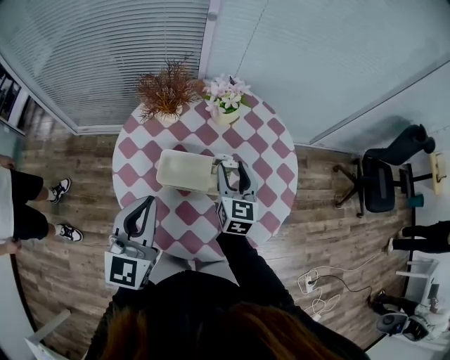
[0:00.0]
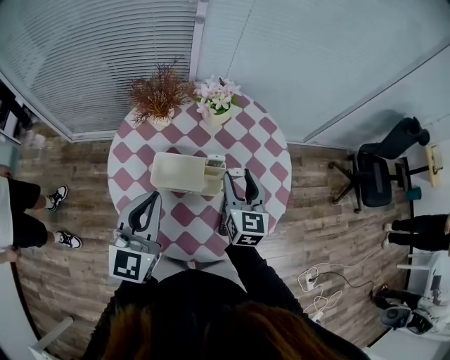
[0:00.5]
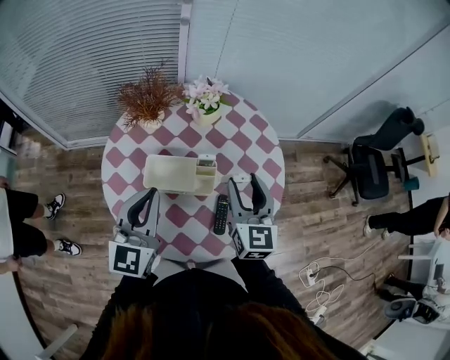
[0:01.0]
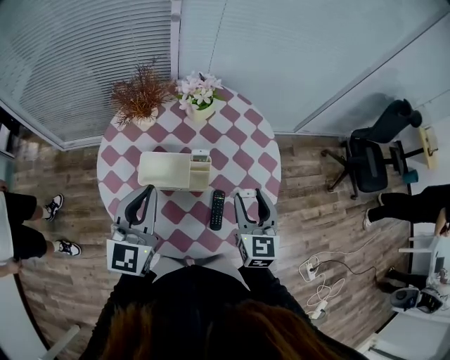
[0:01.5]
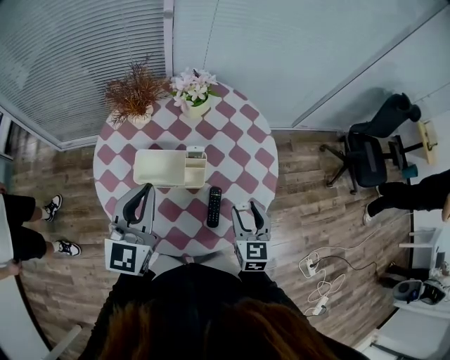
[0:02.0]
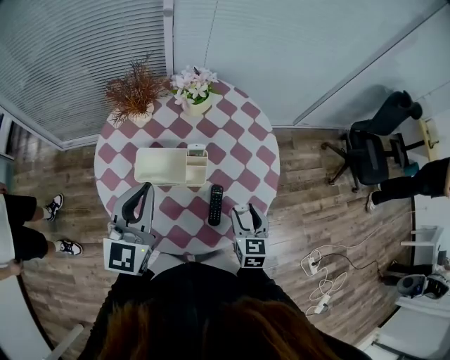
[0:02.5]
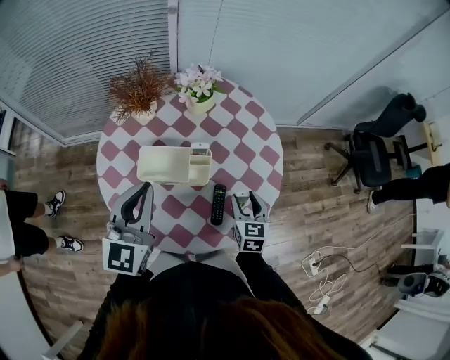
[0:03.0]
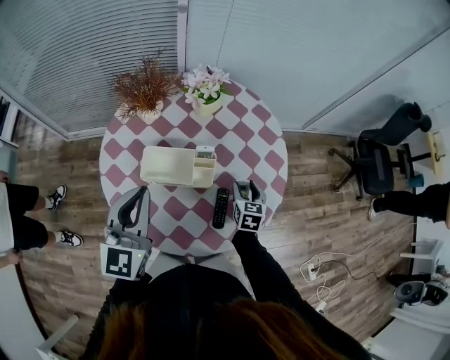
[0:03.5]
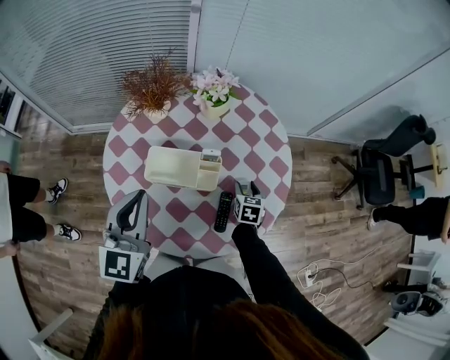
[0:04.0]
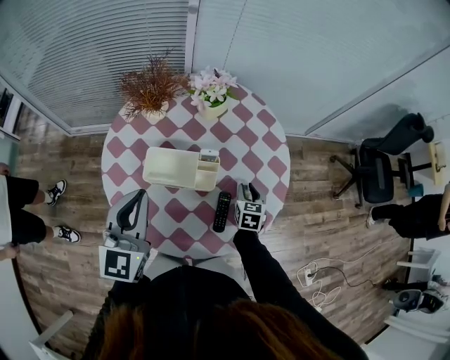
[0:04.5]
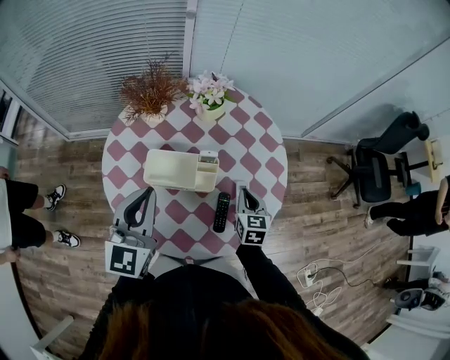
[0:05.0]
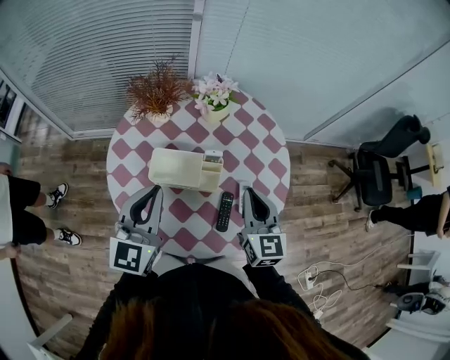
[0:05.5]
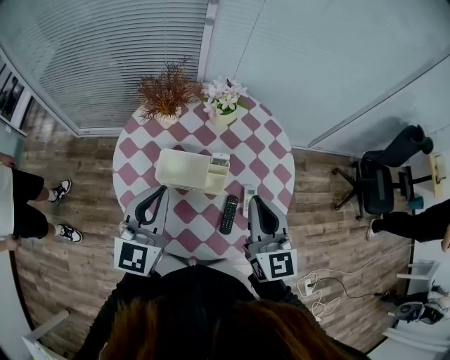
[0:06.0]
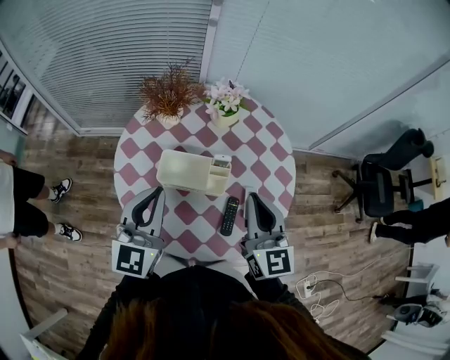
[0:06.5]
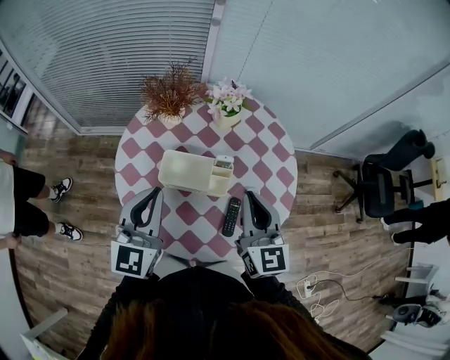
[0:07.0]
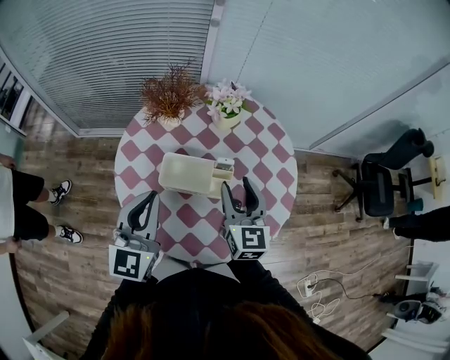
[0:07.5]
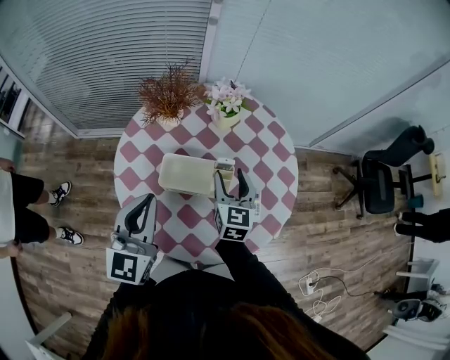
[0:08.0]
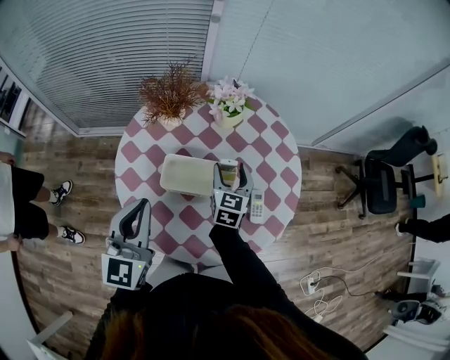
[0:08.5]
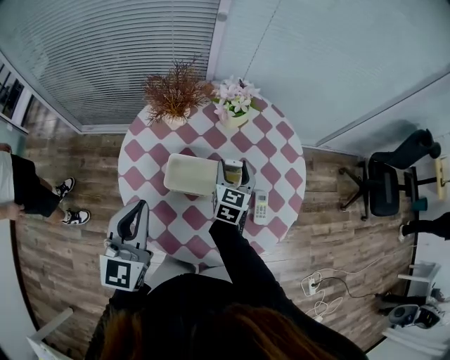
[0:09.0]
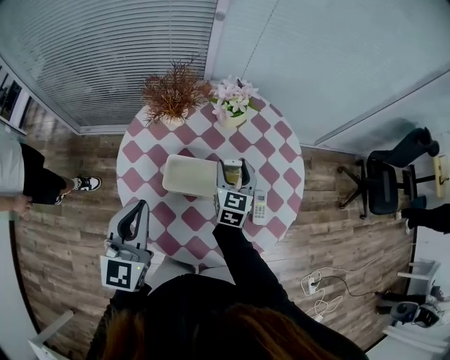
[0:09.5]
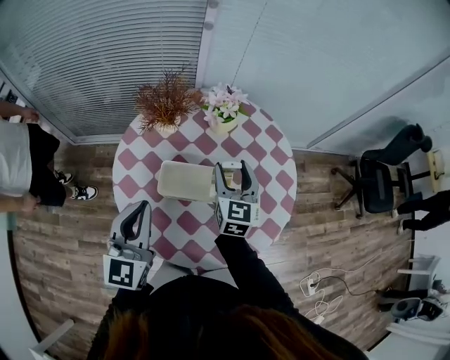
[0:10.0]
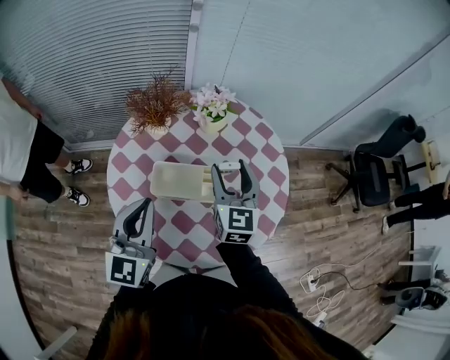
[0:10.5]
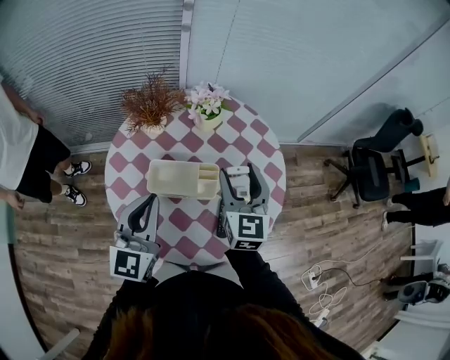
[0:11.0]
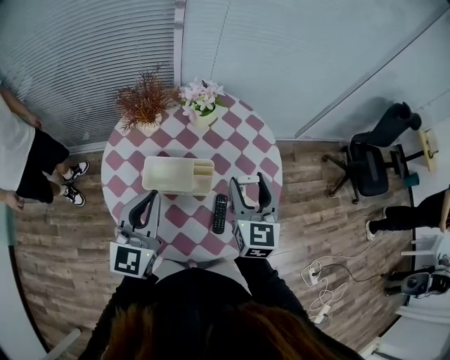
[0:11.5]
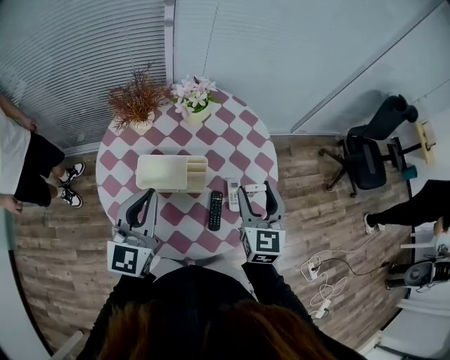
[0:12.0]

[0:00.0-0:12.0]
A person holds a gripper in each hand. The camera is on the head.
0:00.0 to 0:02.0: The right gripper moves to the right and backward, roughly 20 cm; the left gripper is displaced to the right by about 5 cm.
0:02.0 to 0:04.0: The right gripper heads downward and forward, covering some 20 cm, and rotates roughly 20 degrees.
0:04.0 to 0:06.0: The right gripper goes some 30 cm upward, points its fingers about 40 degrees further upward, and closes up.
0:06.0 to 0:08.0: The right gripper travels downward, forward and to the left by some 20 cm, and opens.
0:10.0 to 0:12.0: The left gripper travels to the right by roughly 10 cm, while the right gripper goes roughly 20 cm to the right and backward.

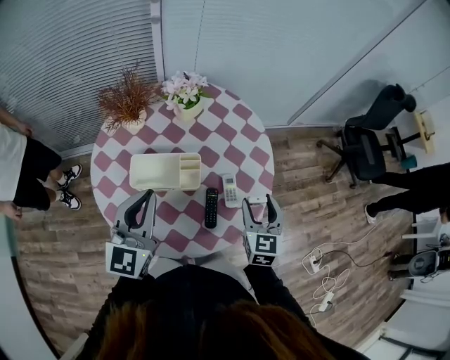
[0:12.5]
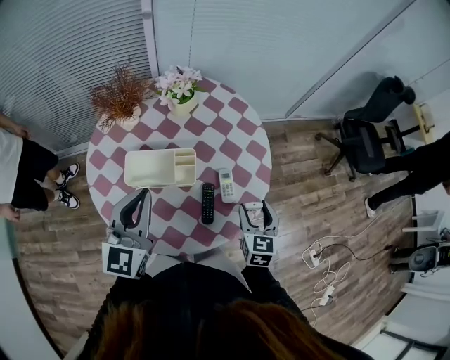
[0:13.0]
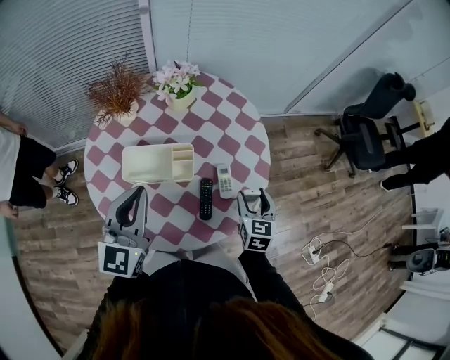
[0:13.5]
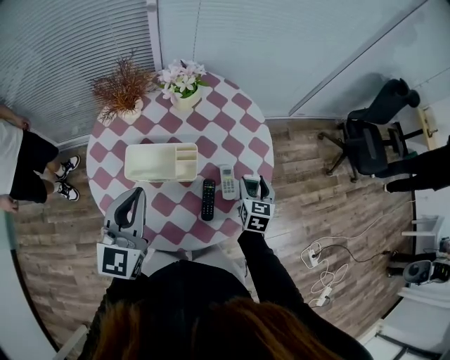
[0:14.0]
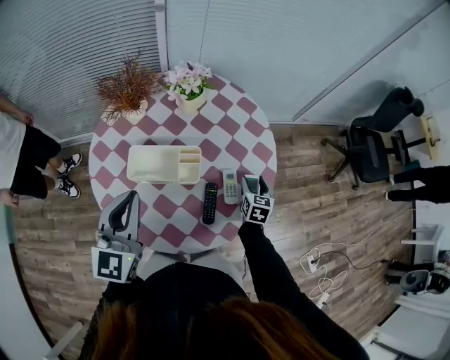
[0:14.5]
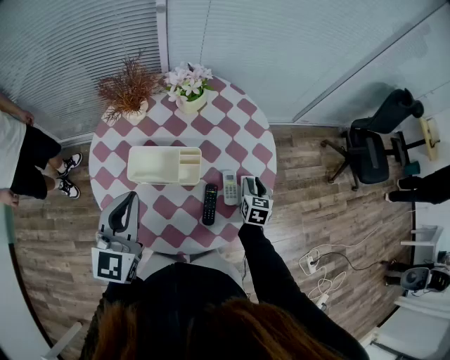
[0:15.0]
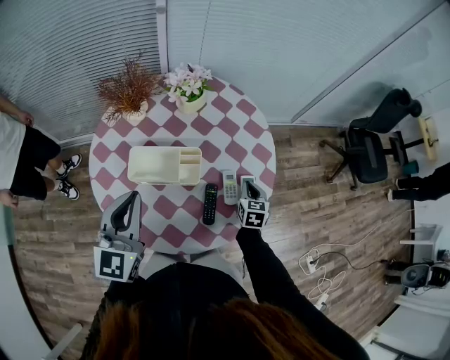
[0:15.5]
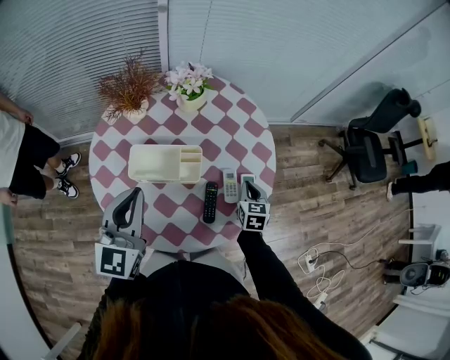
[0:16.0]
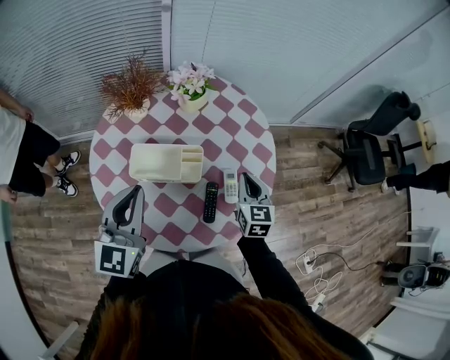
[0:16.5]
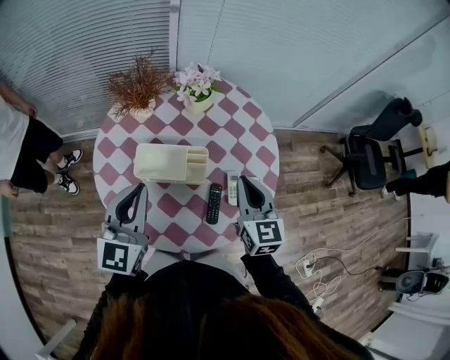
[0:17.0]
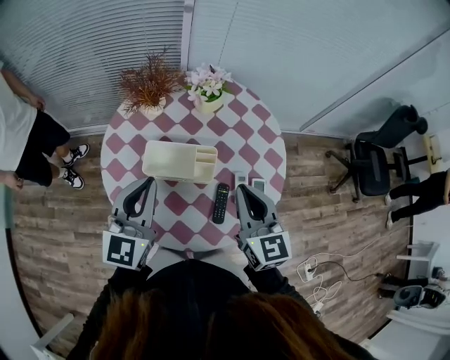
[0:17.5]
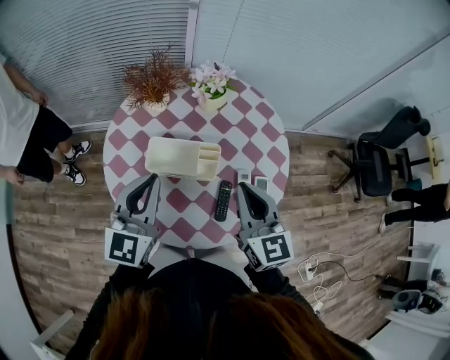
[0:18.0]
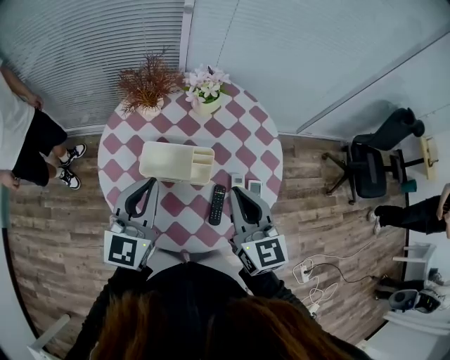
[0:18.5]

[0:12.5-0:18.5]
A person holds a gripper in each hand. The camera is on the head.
0:12.5 to 0:14.5: The right gripper goes some 20 cm downward and forward.
0:14.5 to 0:16.5: The right gripper travels upward and to the left by approximately 15 cm, and closes its fingers.
0:16.5 to 0:18.5: The right gripper shifts about 20 cm upward and to the left, and changes its angle by about 20 degrees.

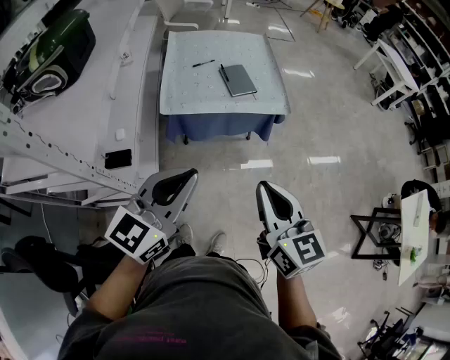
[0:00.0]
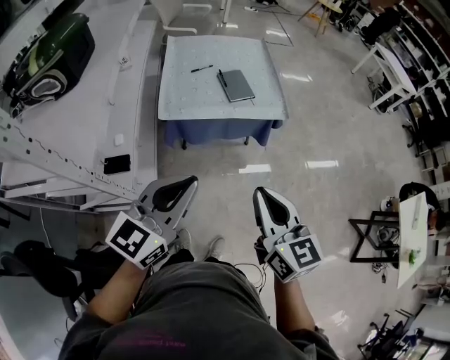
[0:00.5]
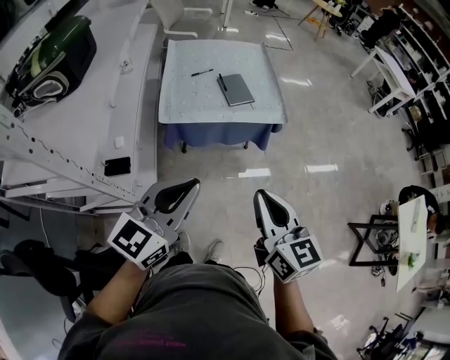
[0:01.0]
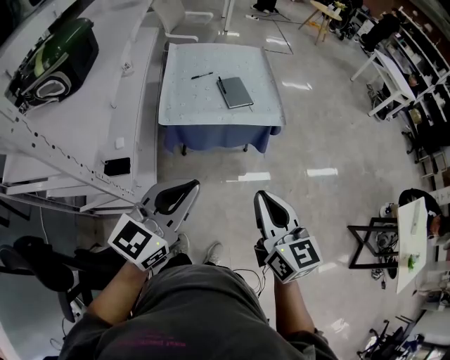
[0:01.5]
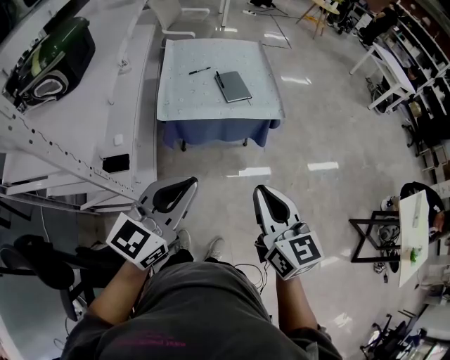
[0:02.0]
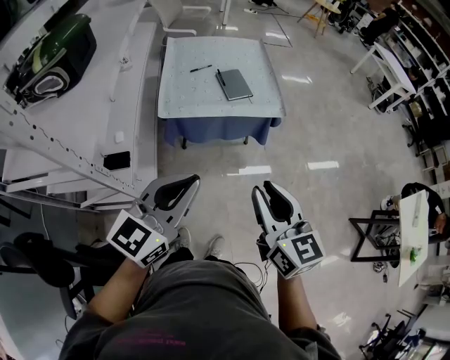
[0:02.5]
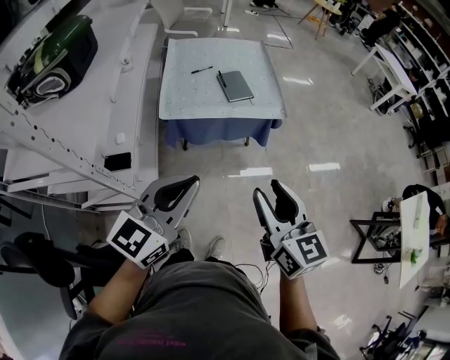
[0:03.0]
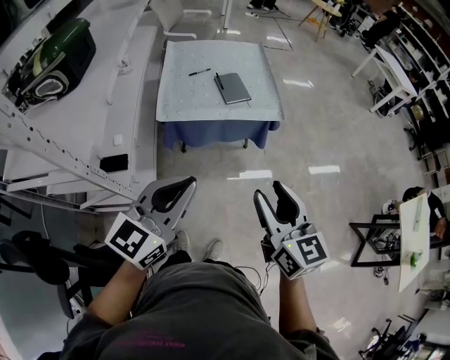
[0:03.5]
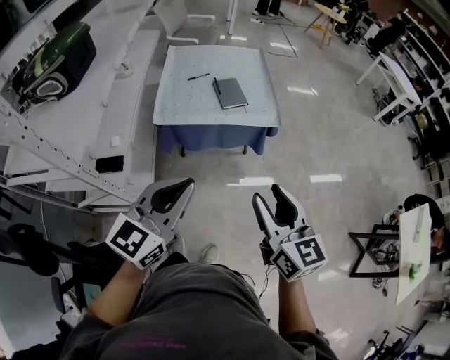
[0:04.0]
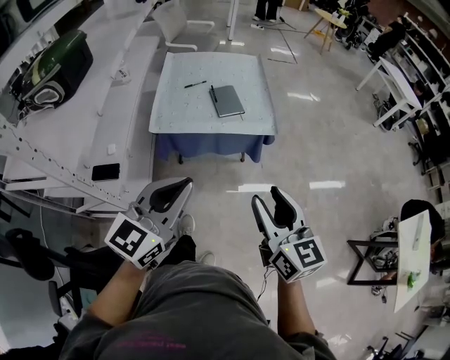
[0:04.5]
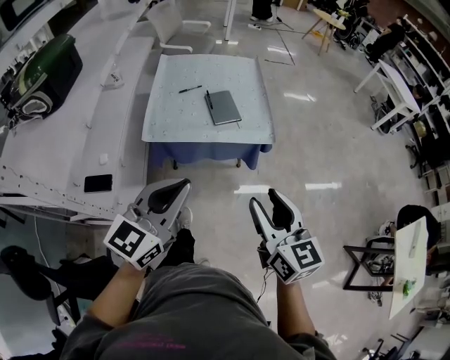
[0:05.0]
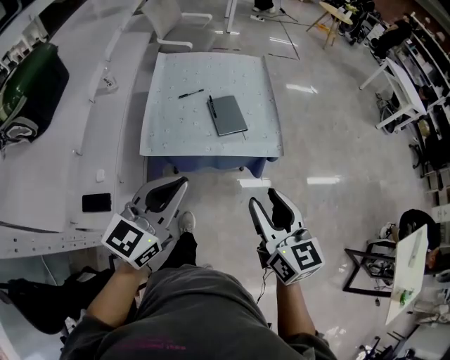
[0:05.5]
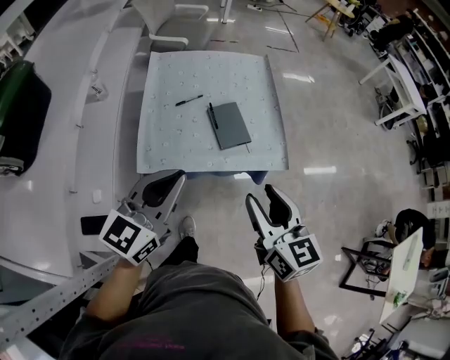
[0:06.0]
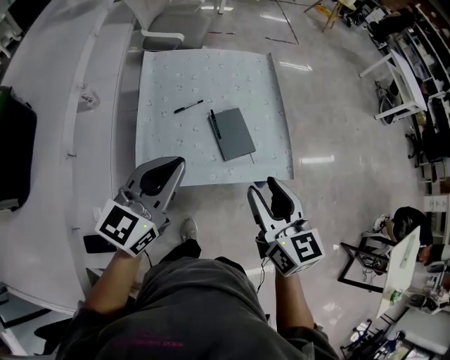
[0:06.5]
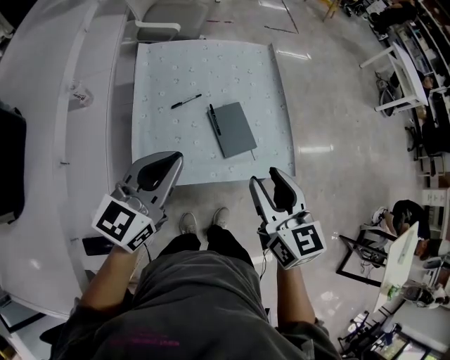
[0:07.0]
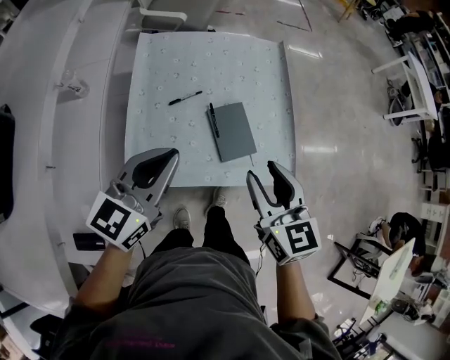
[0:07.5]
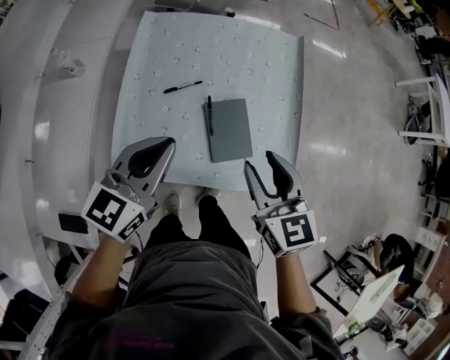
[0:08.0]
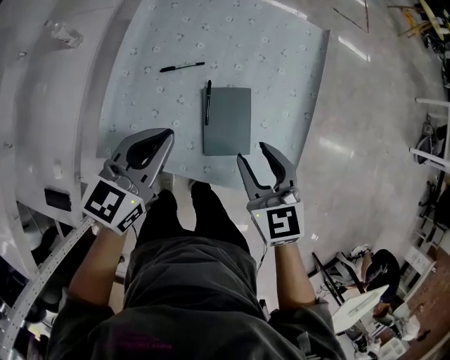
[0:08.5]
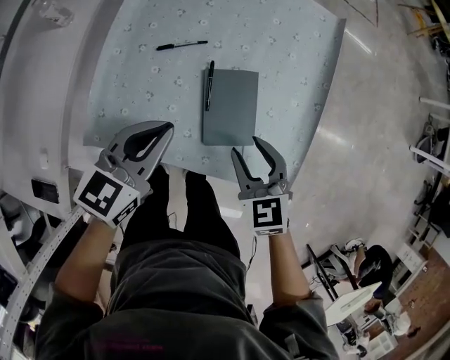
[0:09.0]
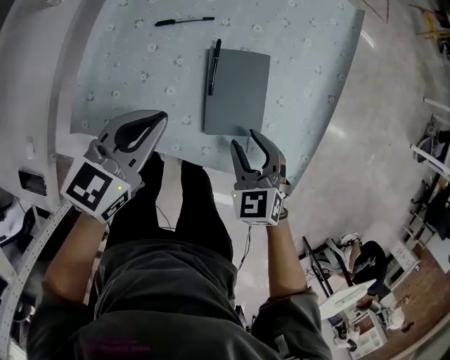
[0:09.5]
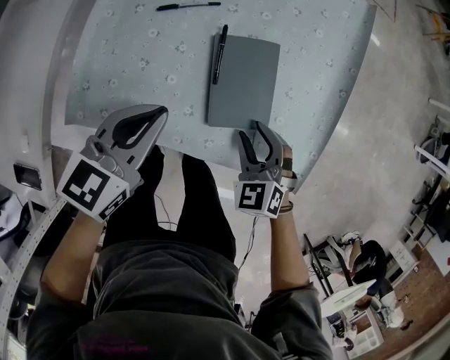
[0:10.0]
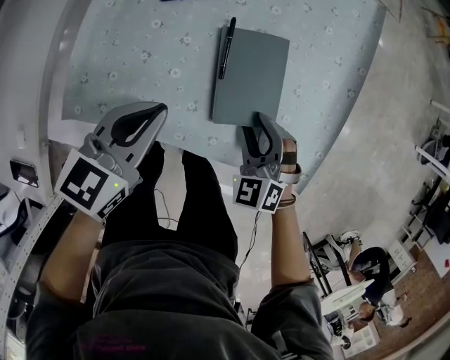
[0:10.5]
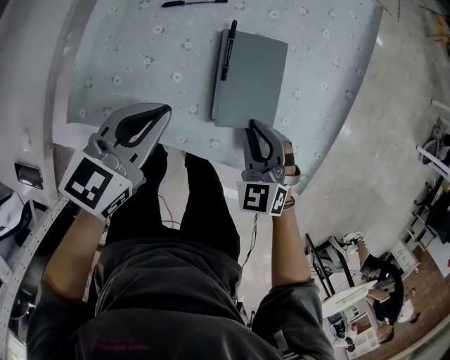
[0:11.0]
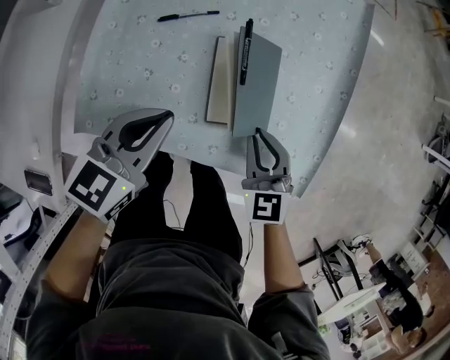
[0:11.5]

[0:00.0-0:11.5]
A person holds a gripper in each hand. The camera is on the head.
0:00.0 to 0:02.0: The grippers stay close to where they were, moving slightly.
0:02.0 to 0:04.0: Both grippers travel together to the right, roughly 5 cm. The right gripper opens up.
0:04.0 to 0:06.0: Both grippers move forward, roughly 35 cm.
0:06.0 to 0:07.5: Both grippers travel together forward, about 20 cm.
0:07.5 to 0:09.5: Both grippers travel together downward, about 25 cm. The left gripper rotates about 20 degrees. The right gripper turns by roughly 40 degrees.
0:09.5 to 0:11.5: The right gripper rotates approximately 20 degrees, and closes its fingers.
